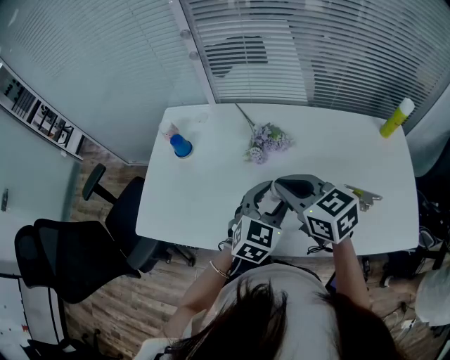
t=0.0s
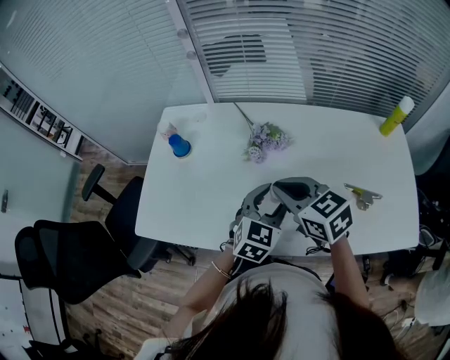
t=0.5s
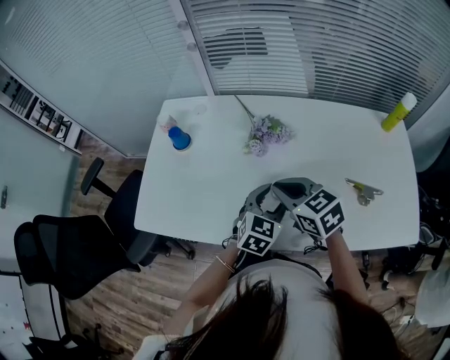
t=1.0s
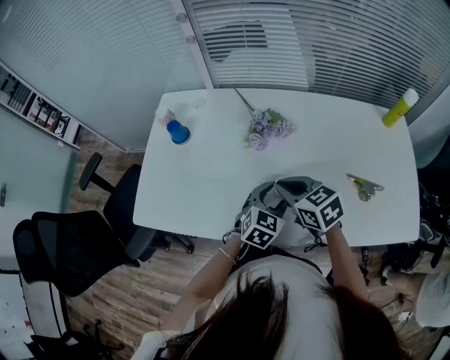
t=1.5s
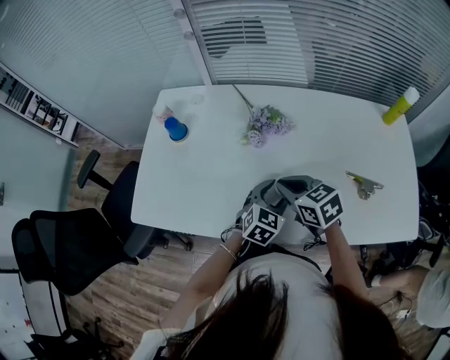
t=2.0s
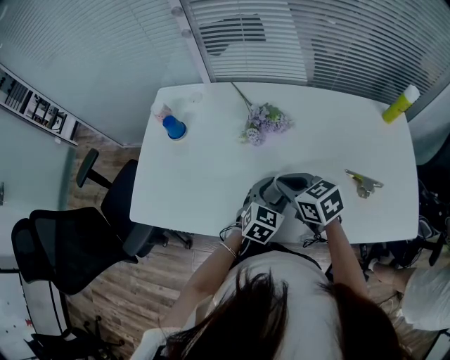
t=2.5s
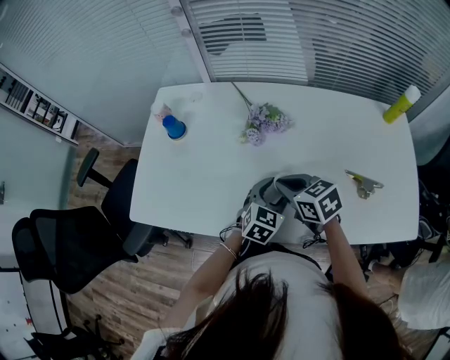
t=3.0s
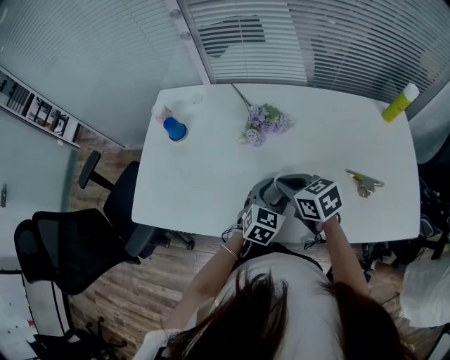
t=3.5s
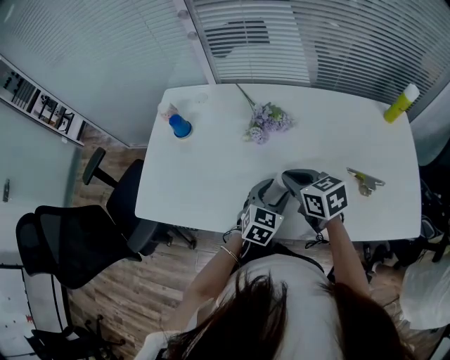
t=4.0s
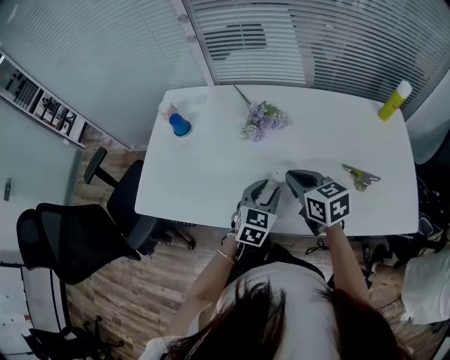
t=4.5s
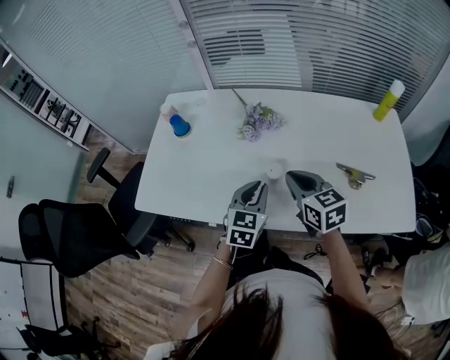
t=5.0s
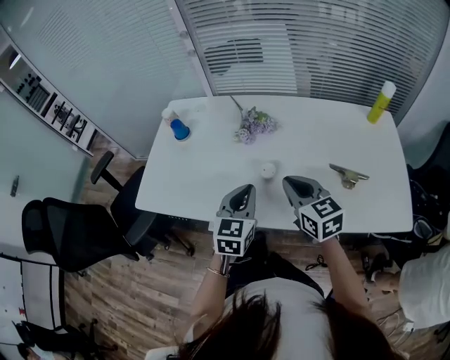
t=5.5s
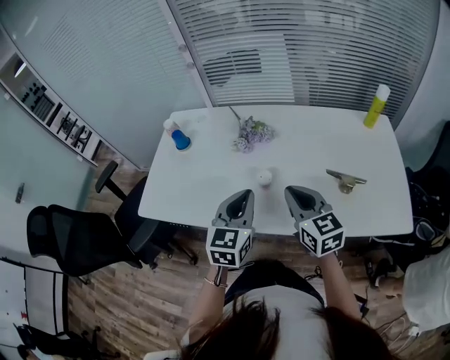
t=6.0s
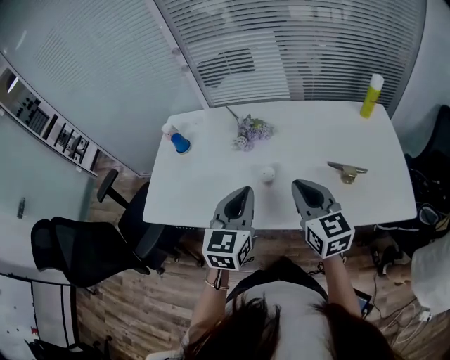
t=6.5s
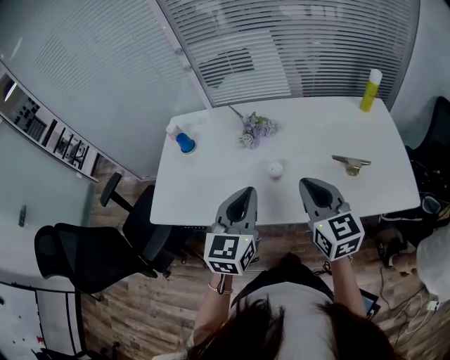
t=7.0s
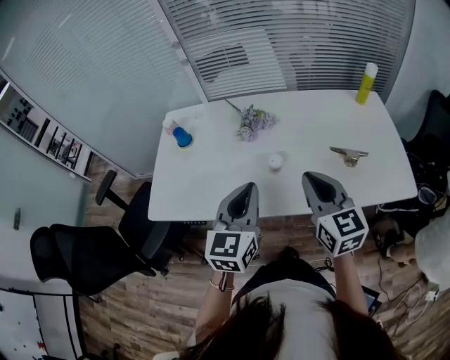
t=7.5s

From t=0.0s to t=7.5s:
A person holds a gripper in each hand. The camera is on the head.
From t=0.0s to t=2.0s: The two grippers go roughly 10 cm downward.
From t=2.0s to t=4.0s: The grippers make only small movements.
From t=4.0s to t=5.5s: The right gripper shifts approximately 10 cm backward and upward, and changes its angle by some 20 degrees; the left gripper shifts some 15 cm upward, backward and to the left, changes its angle by approximately 20 degrees, and closes up.
From t=5.5s to t=7.5s: Both grippers travel together upward and backward, some 10 cm. The right gripper turns by approximately 20 degrees.

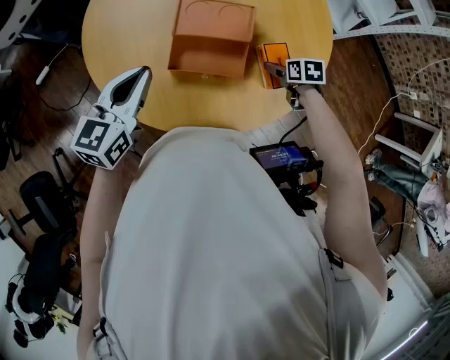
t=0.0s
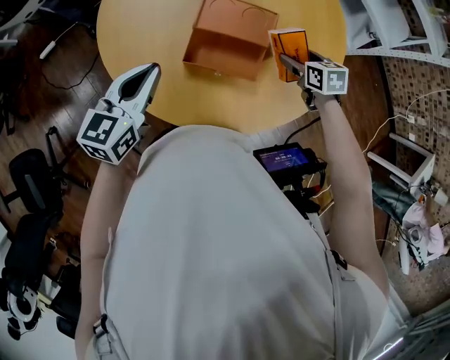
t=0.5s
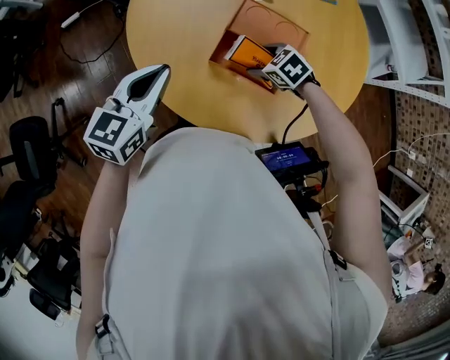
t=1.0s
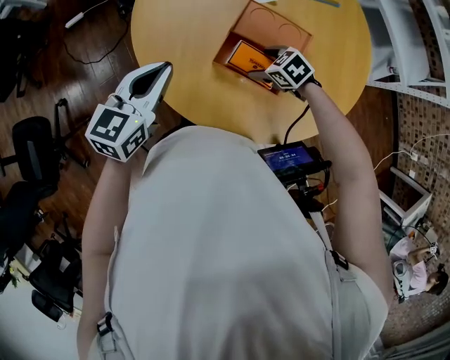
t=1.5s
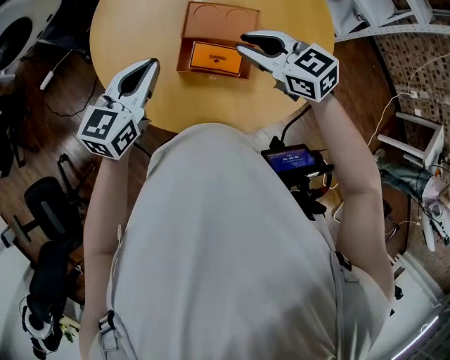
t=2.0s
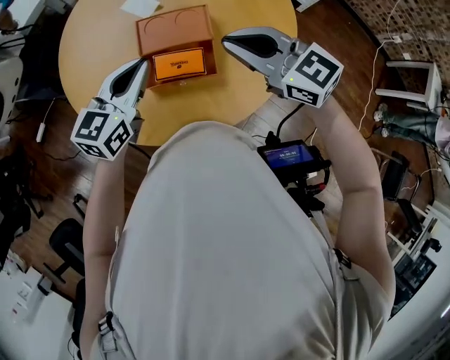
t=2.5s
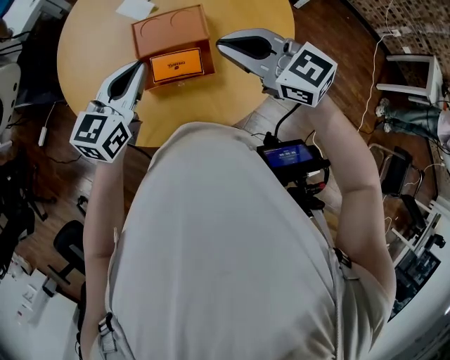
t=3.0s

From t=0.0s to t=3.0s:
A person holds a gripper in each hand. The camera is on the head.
From t=0.0s to t=1.5s: The left gripper ends up about 10 cm from where it was. Meanwhile the right gripper goes upward and returns, some 10 cm each way, and rolls counterclockwise, seen from behind, by some 60 degrees.
From t=1.5s to t=3.0s: The right gripper is displaced upward by roughly 30 cm, angles its fingers upward, by approximately 50 degrees, and closes. The left gripper shifts by some 20 cm, and swivels roughly 30 degrees.

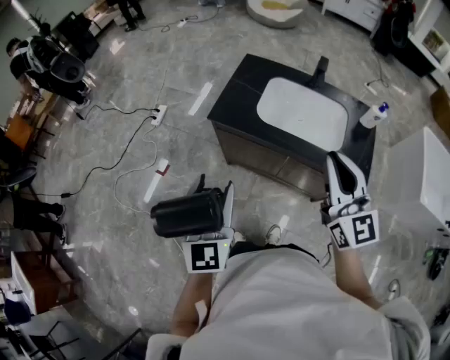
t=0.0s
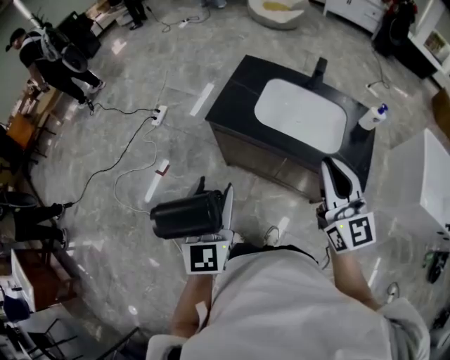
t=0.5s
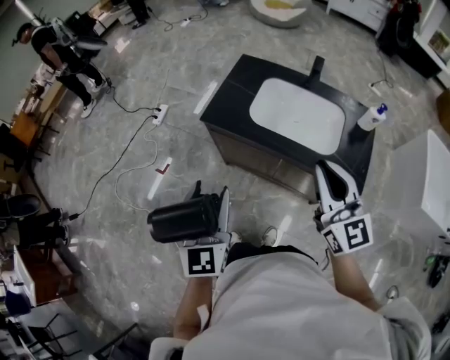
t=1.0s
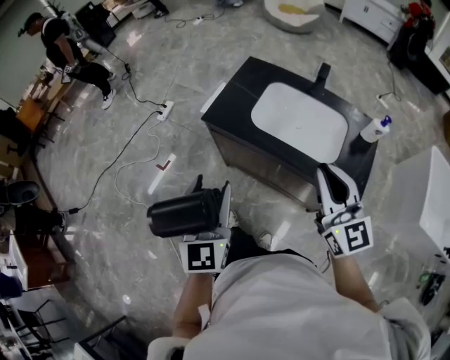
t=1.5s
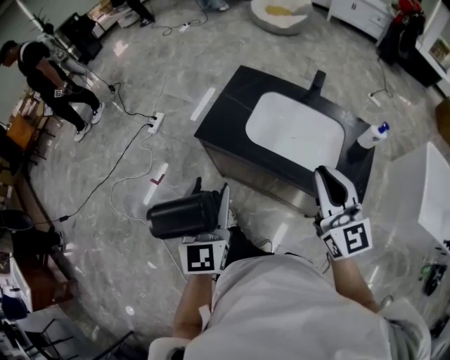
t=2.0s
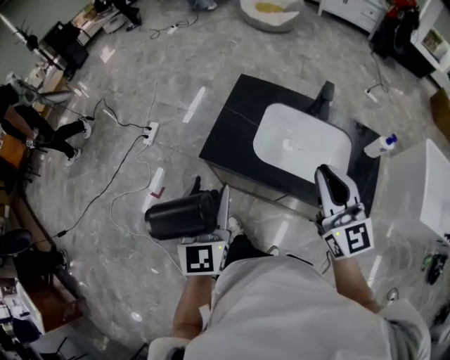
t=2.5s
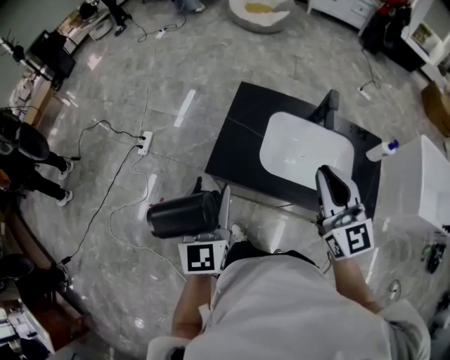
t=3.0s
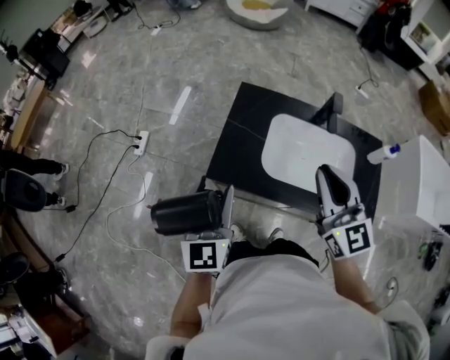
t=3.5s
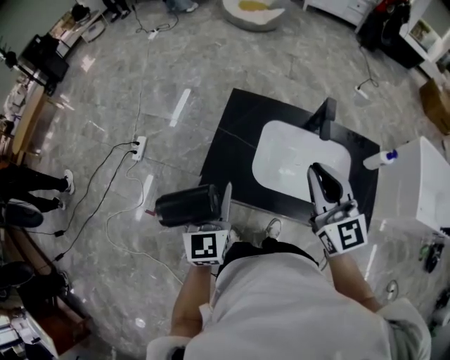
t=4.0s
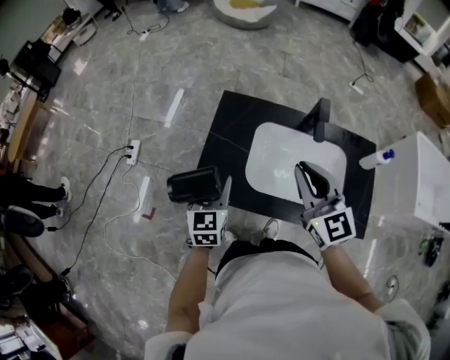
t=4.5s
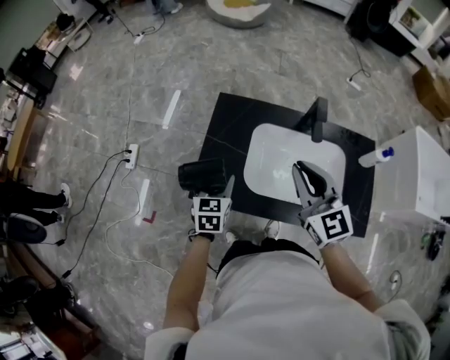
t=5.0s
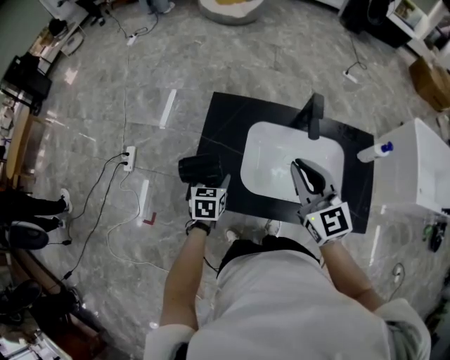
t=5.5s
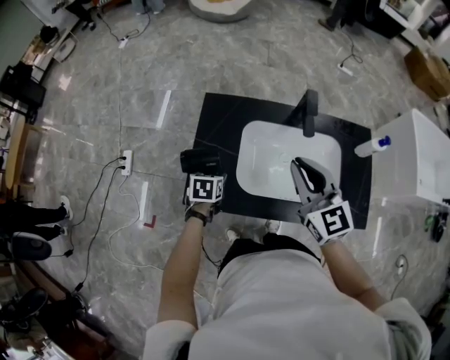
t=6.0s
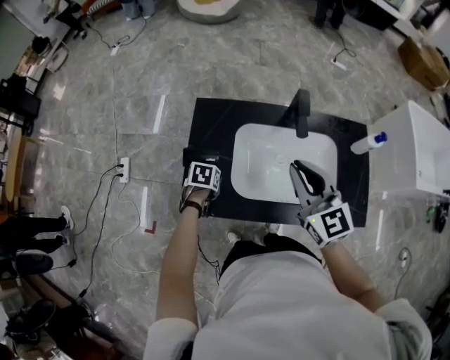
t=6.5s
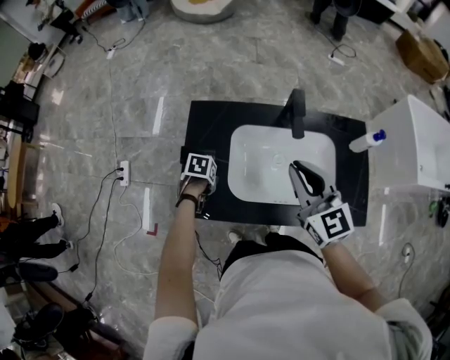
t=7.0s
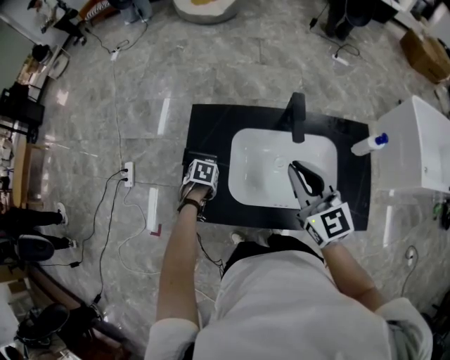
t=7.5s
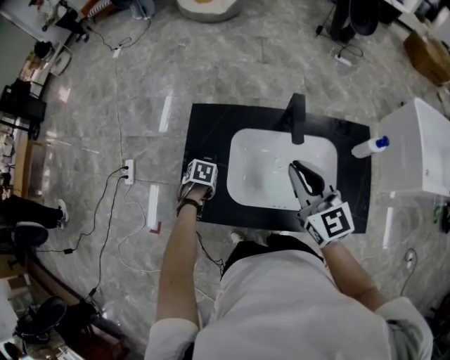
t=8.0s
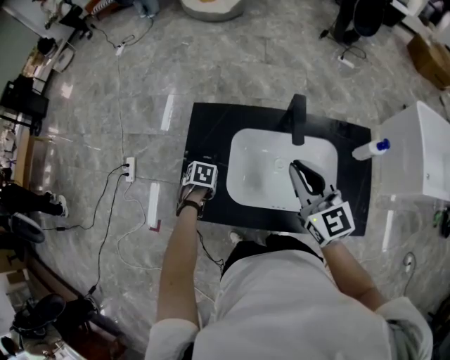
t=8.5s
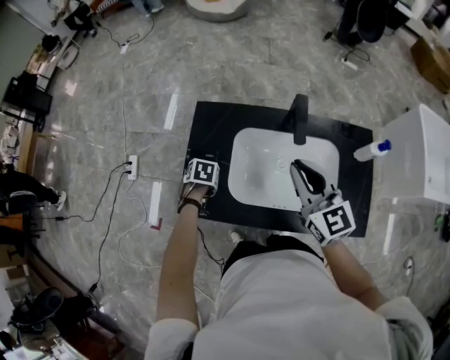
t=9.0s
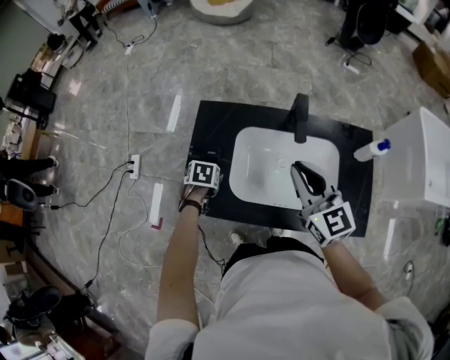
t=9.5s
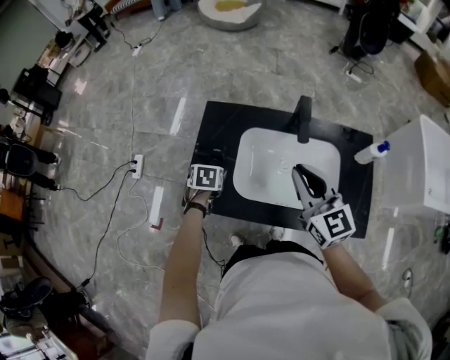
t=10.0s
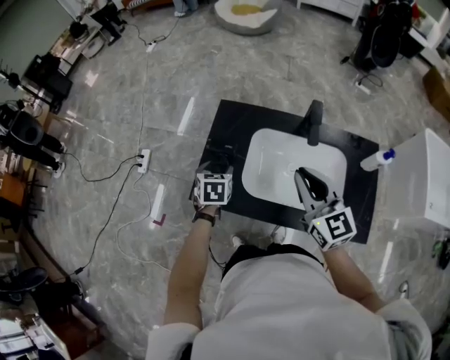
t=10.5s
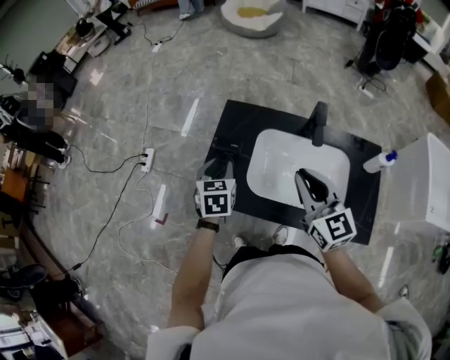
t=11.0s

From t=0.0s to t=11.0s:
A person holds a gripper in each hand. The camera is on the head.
From t=0.0s to t=2.0s: Both grippers move forward and to the right, about 10 cm.
From t=2.0s to t=3.5s: The right gripper goes roughly 20 cm forward and to the left, while the left gripper travels forward by about 20 cm.
From t=3.5s to t=5.5s: The left gripper moves downward and forward, approximately 25 cm, and tilts its fingers some 40 degrees downward, while the right gripper is displaced forward and downward by some 10 cm.
From t=5.5s to t=7.5s: The right gripper shifts by roughly 5 cm; the left gripper heads downward, covering roughly 10 cm, and tilts its fingers roughly 40 degrees downward.
From t=7.5s to t=9.0s: The grippers move only a little.
From t=9.0s to t=11.0s: The right gripper changes place by about 10 cm. Meanwhile the left gripper goes some 20 cm upward, points its fingers some 40 degrees further upward, and closes up.

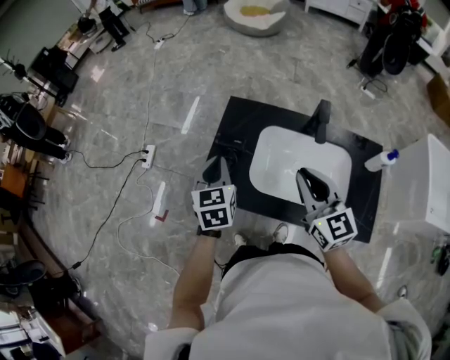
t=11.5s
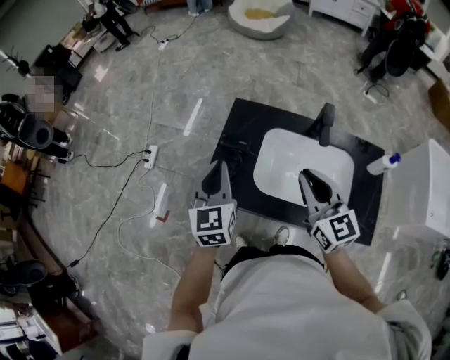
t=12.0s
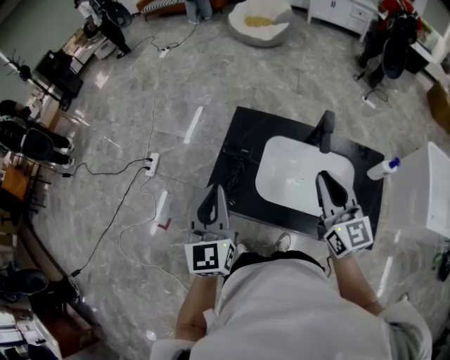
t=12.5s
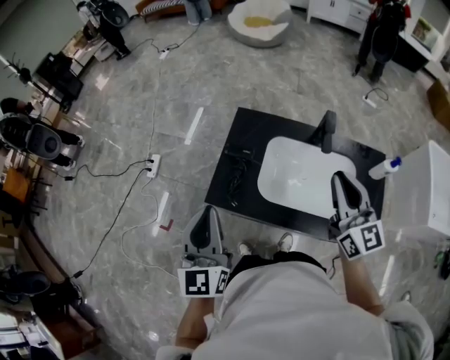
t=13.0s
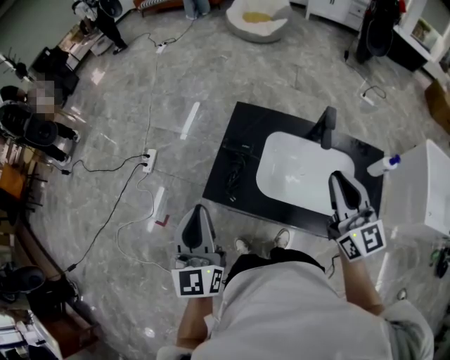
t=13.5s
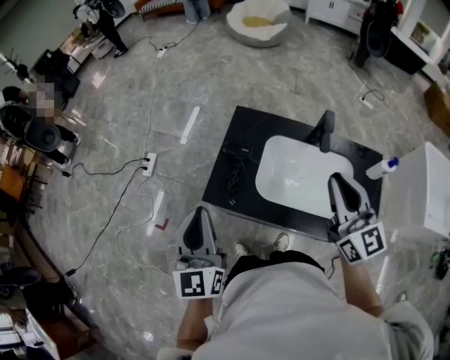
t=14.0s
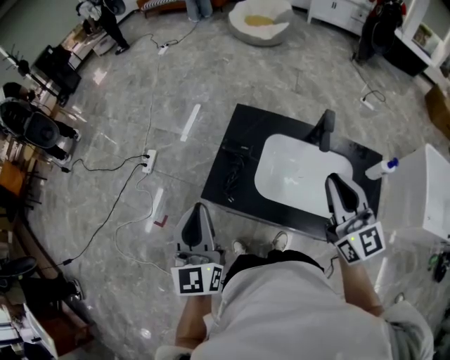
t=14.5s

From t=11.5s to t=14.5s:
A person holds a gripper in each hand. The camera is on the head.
From t=11.5s to t=13.0s: The right gripper heads upward and to the right, covering approximately 10 cm. Meanwhile the left gripper goes approximately 20 cm upward, backward and to the left, and changes its angle by approximately 30 degrees.
From t=13.0s to t=14.5s: The grippers move only a little.

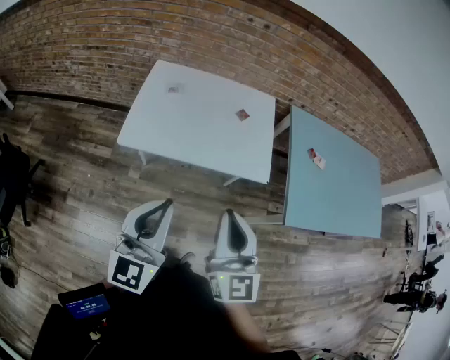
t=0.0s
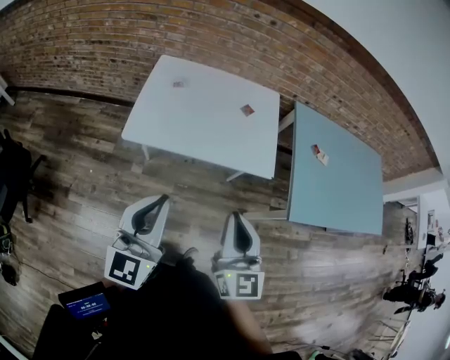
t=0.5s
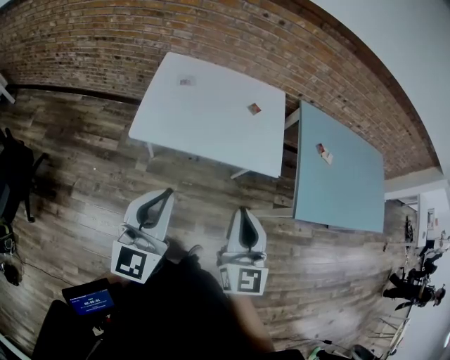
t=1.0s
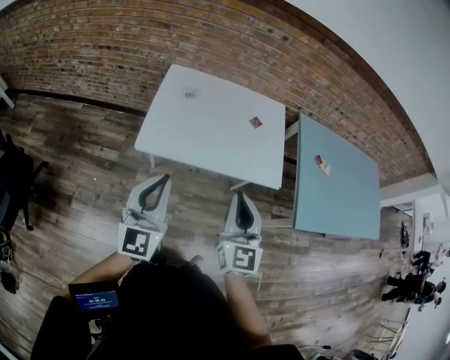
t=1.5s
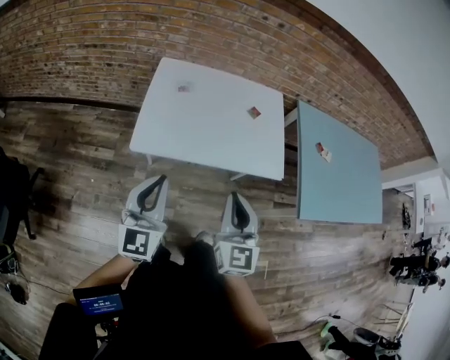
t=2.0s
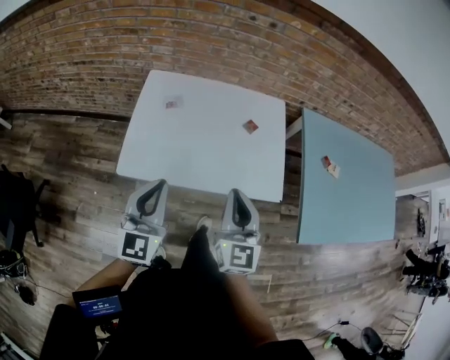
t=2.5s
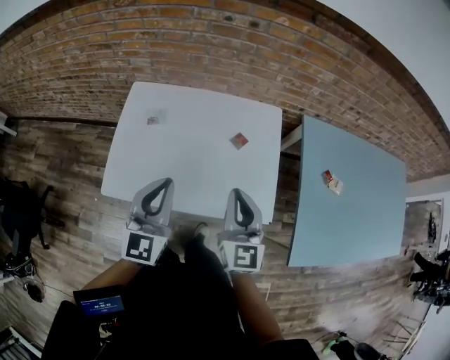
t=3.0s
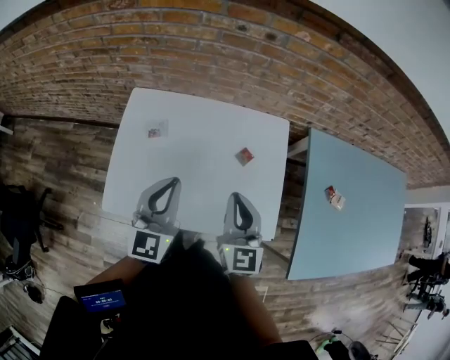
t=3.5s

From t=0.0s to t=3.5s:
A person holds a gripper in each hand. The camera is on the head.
From t=0.0s to t=2.0s: The left gripper is displaced to the left, forward and downward by some 15 cm; the right gripper is displaced to the left, downward and forward by roughly 15 cm.
From t=2.0s to t=3.5s: The left gripper shifts about 35 cm forward and to the right; the right gripper heads forward, covering approximately 30 cm.
